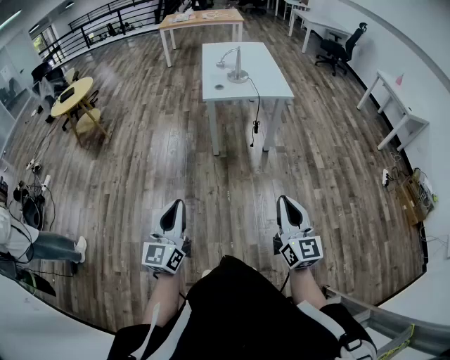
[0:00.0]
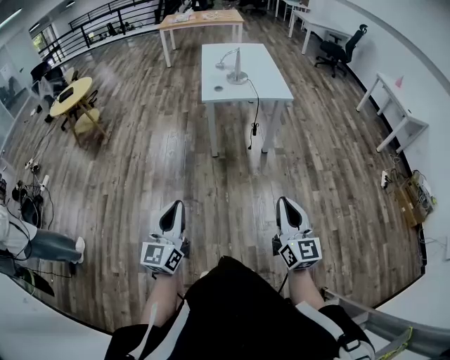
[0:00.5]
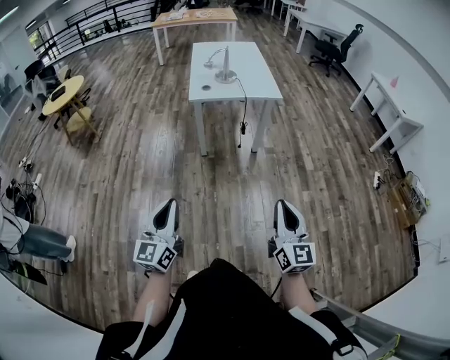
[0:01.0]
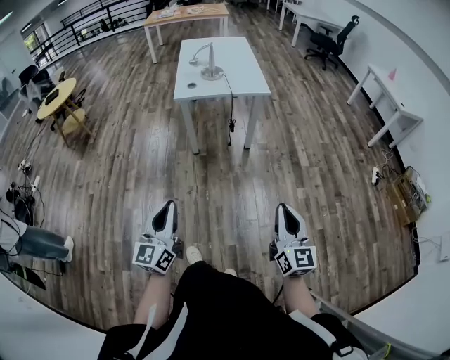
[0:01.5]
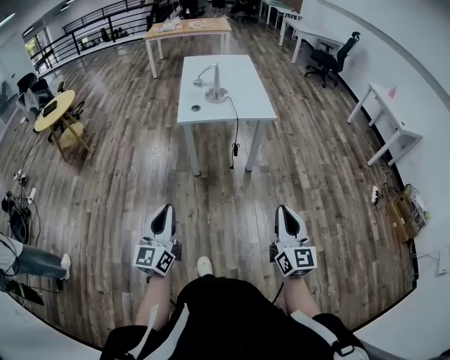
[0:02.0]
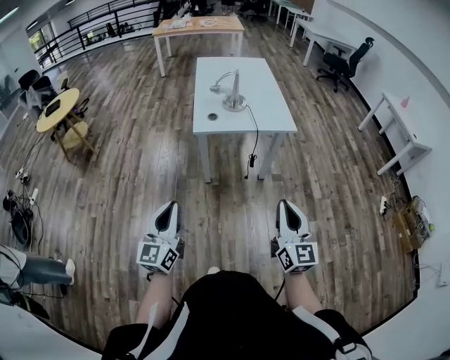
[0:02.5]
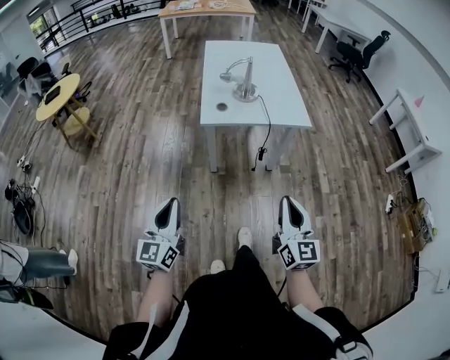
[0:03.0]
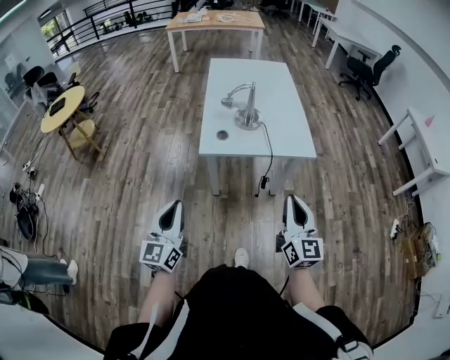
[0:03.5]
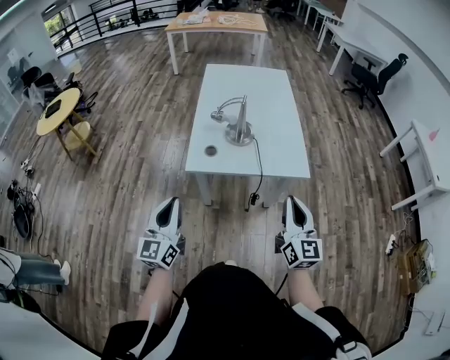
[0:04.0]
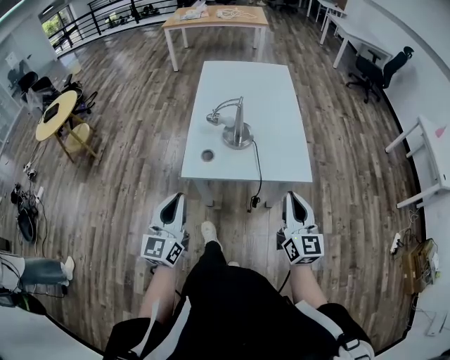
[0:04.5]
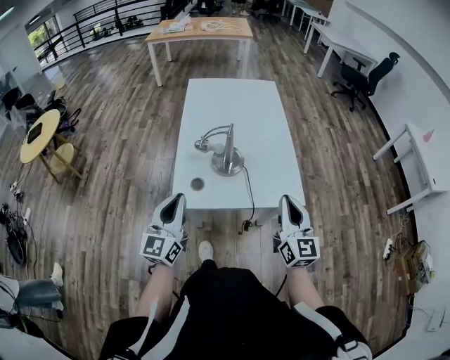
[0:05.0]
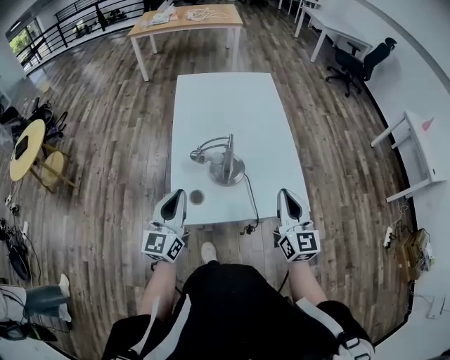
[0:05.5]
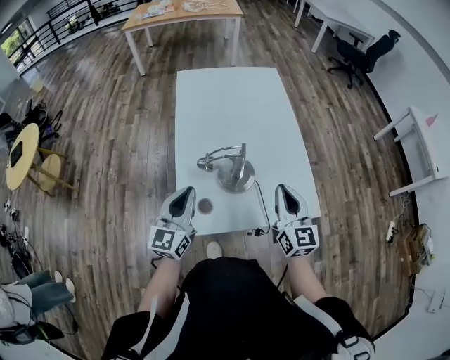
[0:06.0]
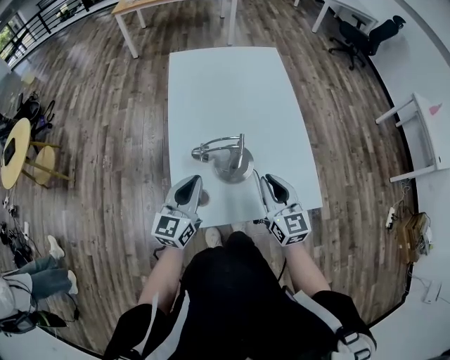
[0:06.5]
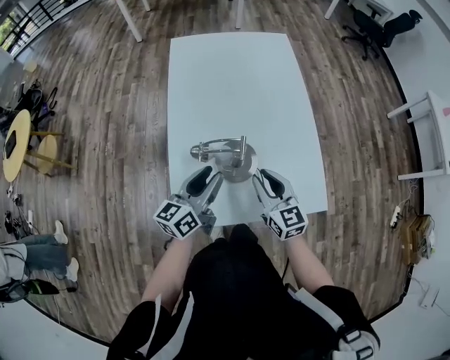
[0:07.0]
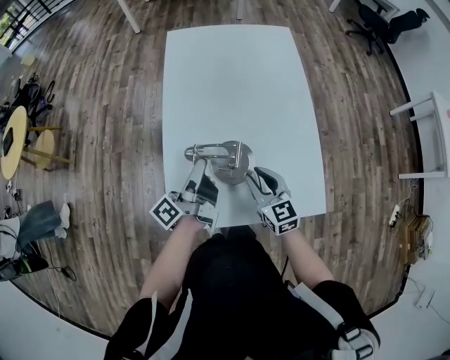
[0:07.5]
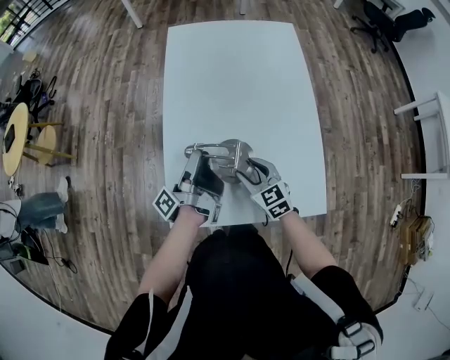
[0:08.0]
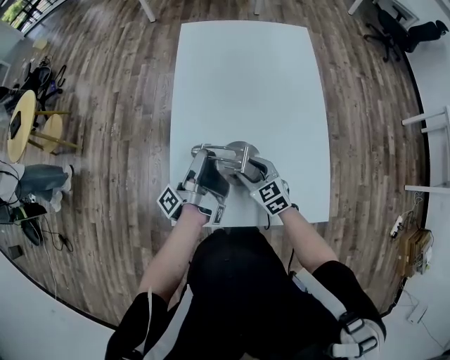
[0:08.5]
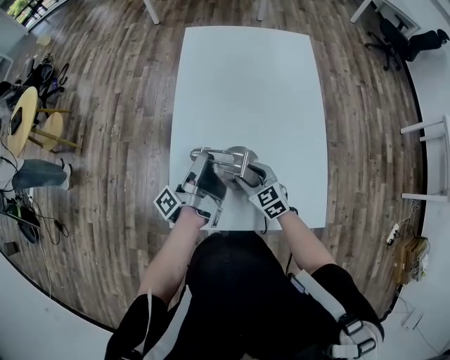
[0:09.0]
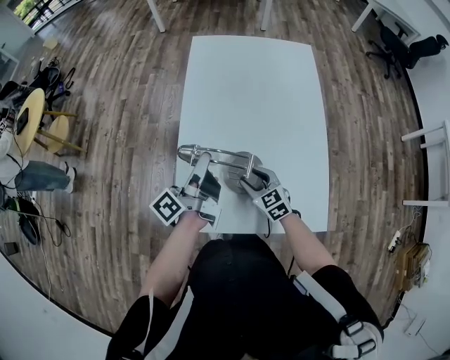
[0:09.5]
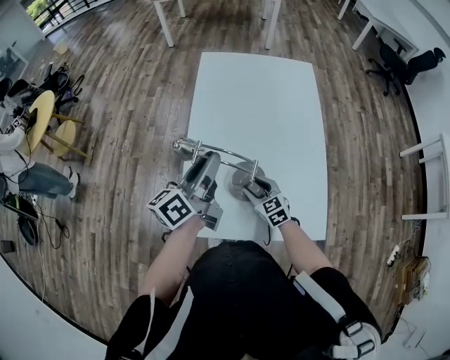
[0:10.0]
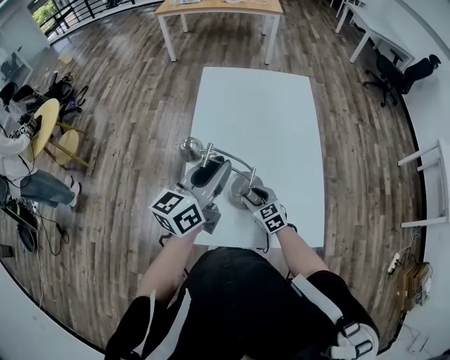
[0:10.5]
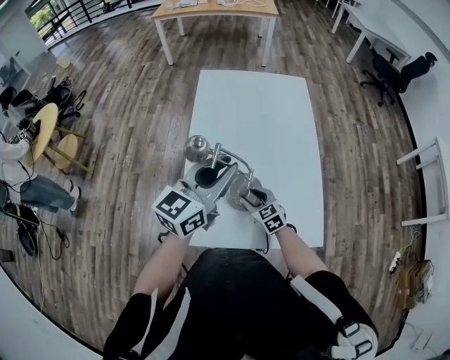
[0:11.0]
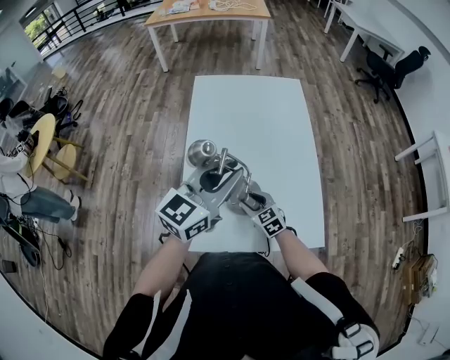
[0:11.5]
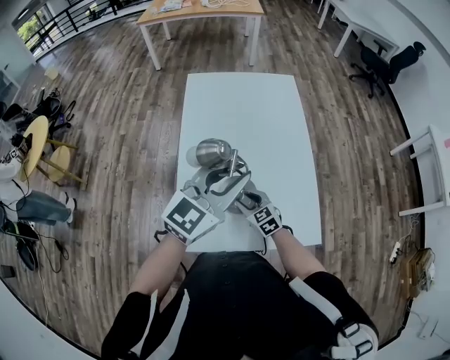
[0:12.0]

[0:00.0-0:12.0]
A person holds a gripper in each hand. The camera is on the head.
0:00.0 to 0:02.0: The two grippers go approximately 15 cm forward and to the right.
0:02.0 to 0:04.0: Both grippers move forward, about 35 cm.
0:04.0 to 0:06.0: The grippers both shift forward by approximately 30 cm.
0:06.0 to 0:08.0: The right gripper heads downward and to the left, covering about 20 cm, turns by roughly 40 degrees, and opens up, while the left gripper is displaced forward, downward and to the right by about 15 cm, twists approximately 100 degrees counterclockwise, seen from behind, and opens.
0:08.0 to 0:10.0: The left gripper shifts roughly 10 cm upward, and twists roughly 50 degrees clockwise, seen from behind.
0:10.0 to 0:12.0: The left gripper shifts approximately 15 cm to the right and upward, and rotates around the line of its fingers by about 50 degrees, clockwise from behind.

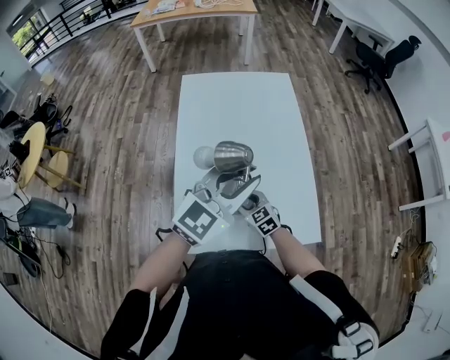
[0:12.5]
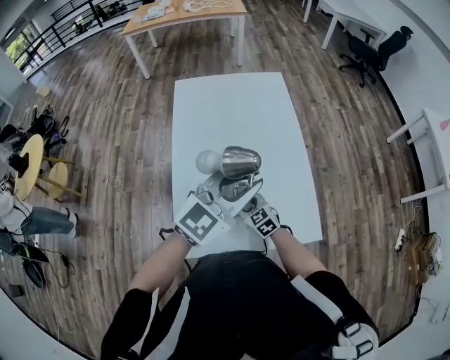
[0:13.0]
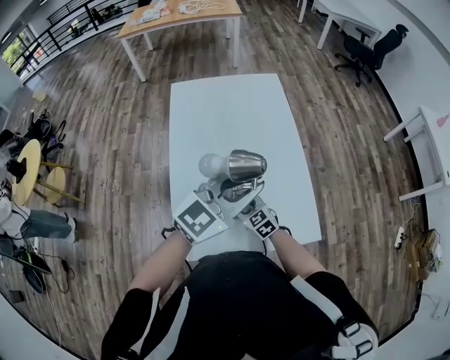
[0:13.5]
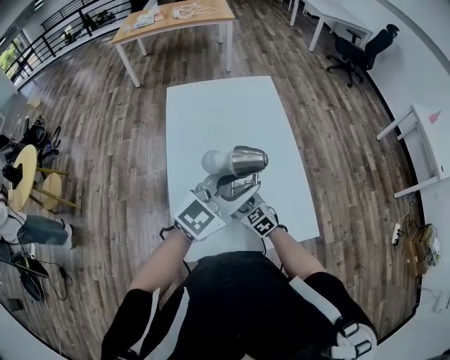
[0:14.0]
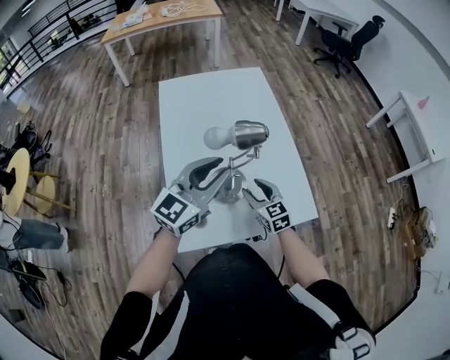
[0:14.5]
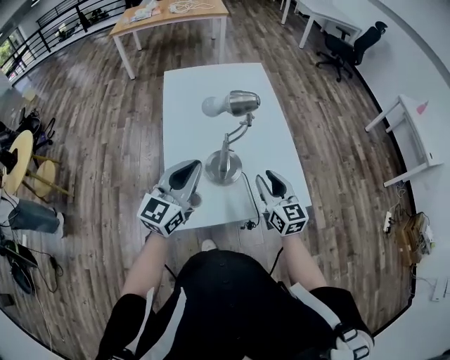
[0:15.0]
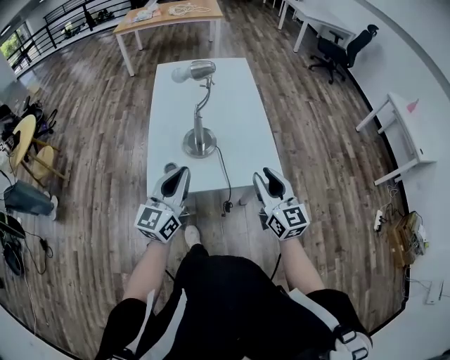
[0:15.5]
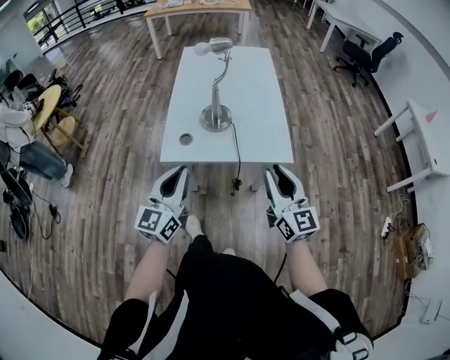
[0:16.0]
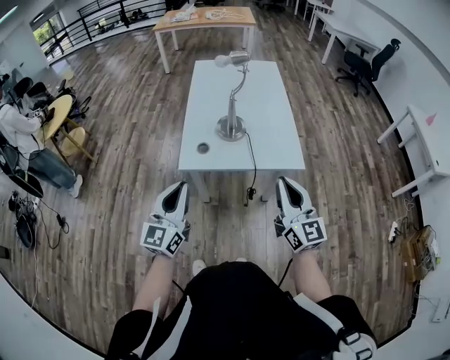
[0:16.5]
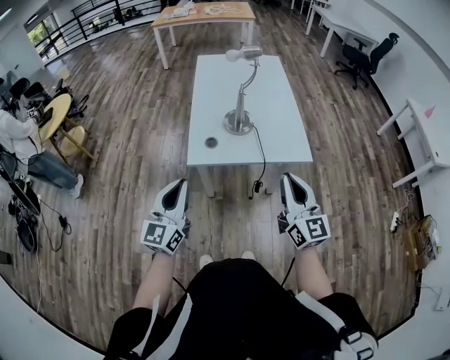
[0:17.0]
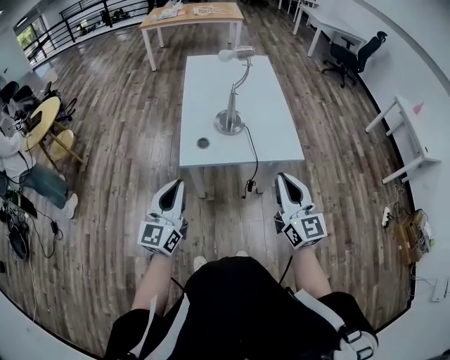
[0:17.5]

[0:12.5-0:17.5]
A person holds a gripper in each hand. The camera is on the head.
0:12.5 to 0:15.0: The right gripper is displaced upward and to the right by roughly 20 cm, and turns by roughly 40 degrees; the left gripper goes about 15 cm to the left, backward and downward, and turns by approximately 20 degrees.
0:15.0 to 0:17.5: The right gripper moves backward and upward, about 30 cm, and closes its fingers; the left gripper shifts approximately 30 cm backward, and rotates roughly 20 degrees.

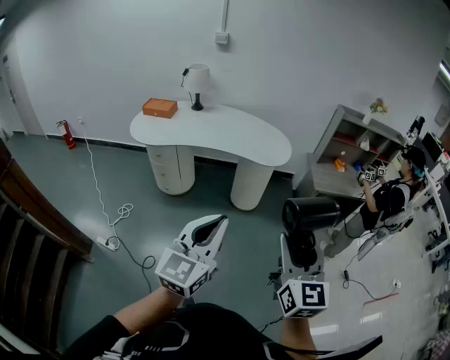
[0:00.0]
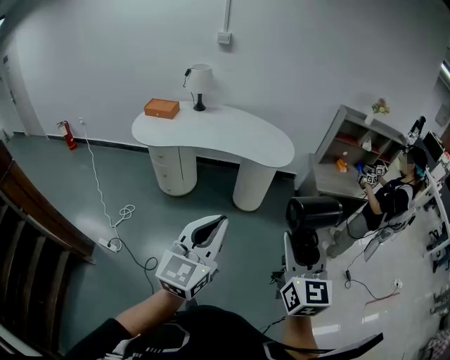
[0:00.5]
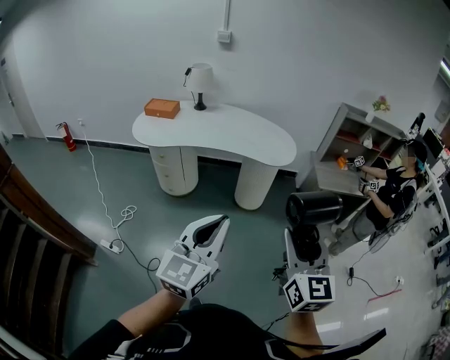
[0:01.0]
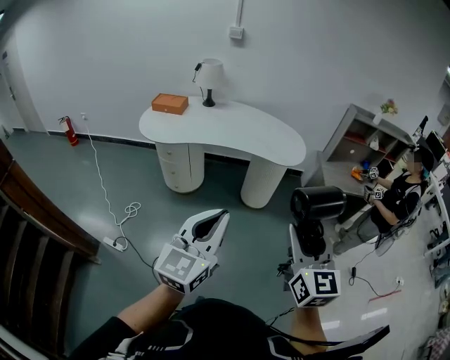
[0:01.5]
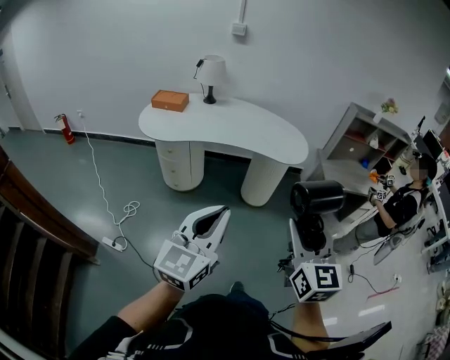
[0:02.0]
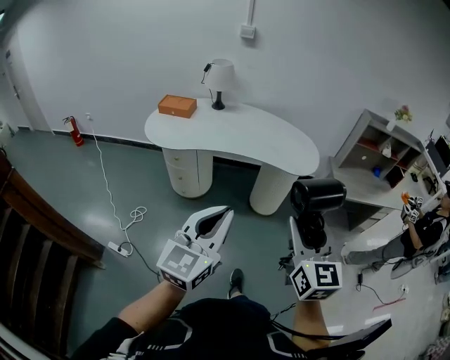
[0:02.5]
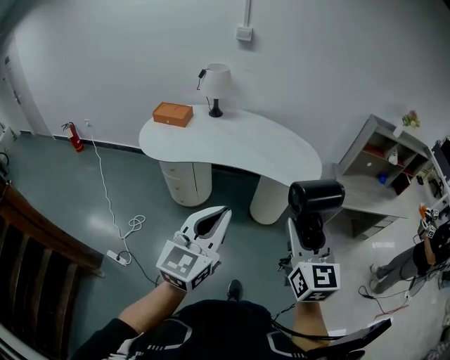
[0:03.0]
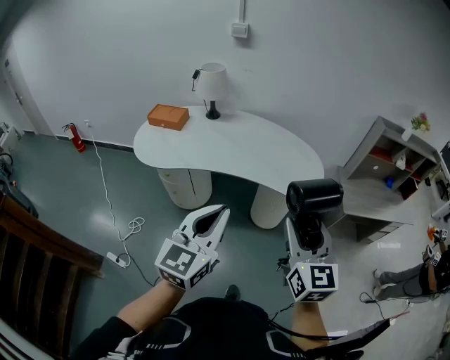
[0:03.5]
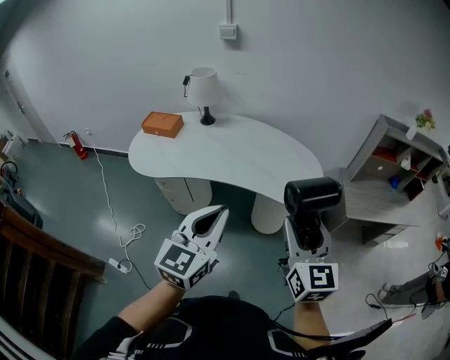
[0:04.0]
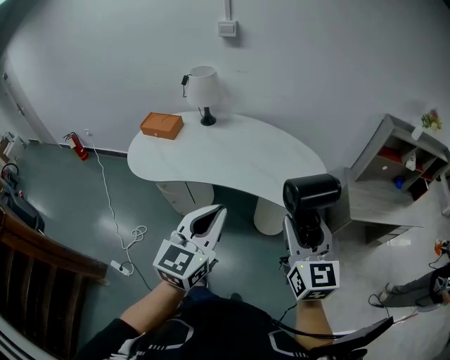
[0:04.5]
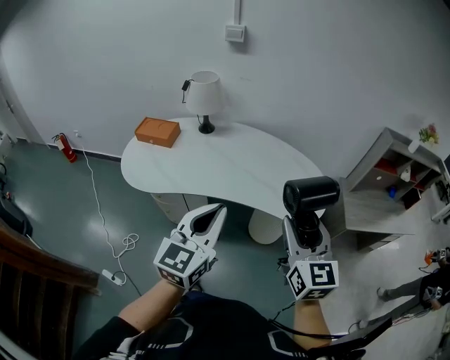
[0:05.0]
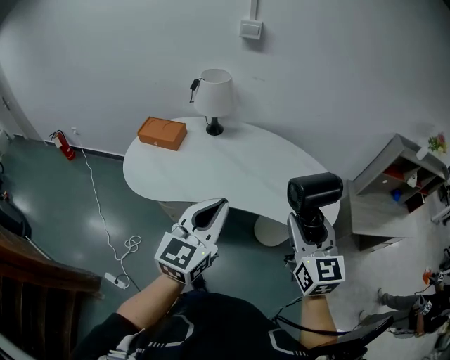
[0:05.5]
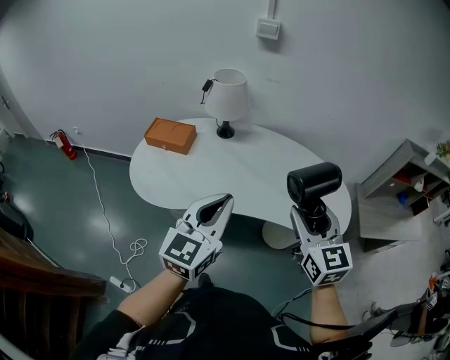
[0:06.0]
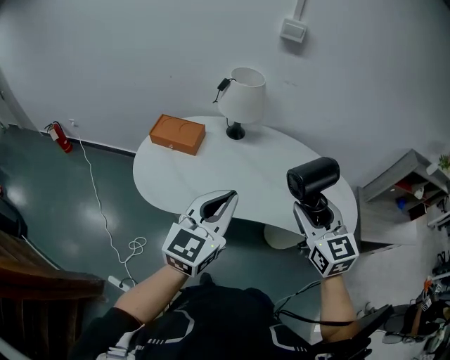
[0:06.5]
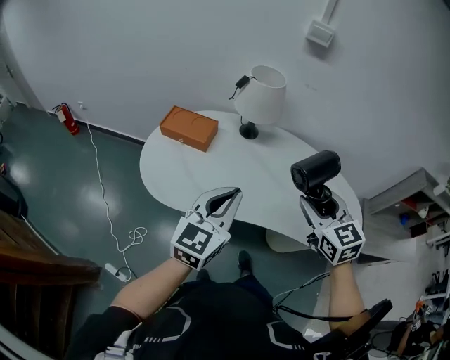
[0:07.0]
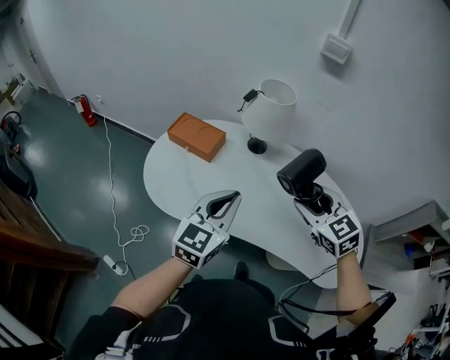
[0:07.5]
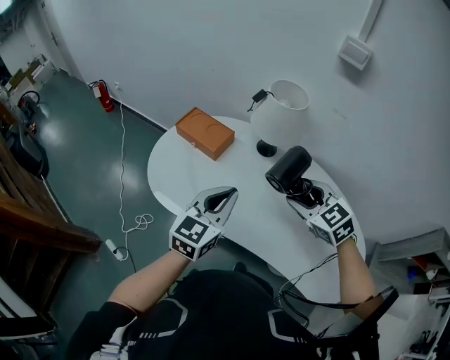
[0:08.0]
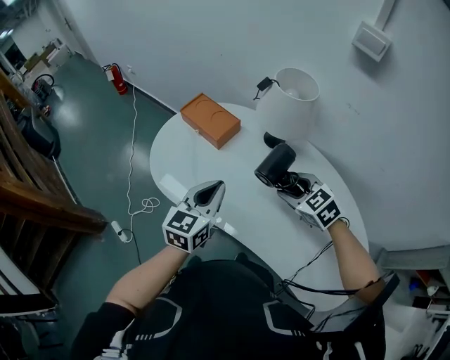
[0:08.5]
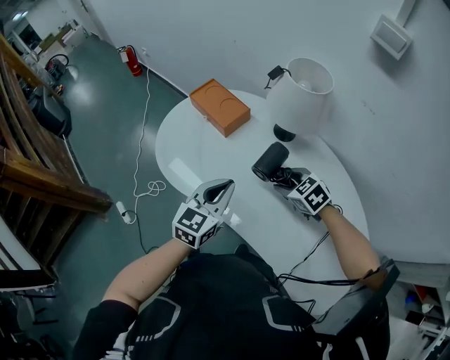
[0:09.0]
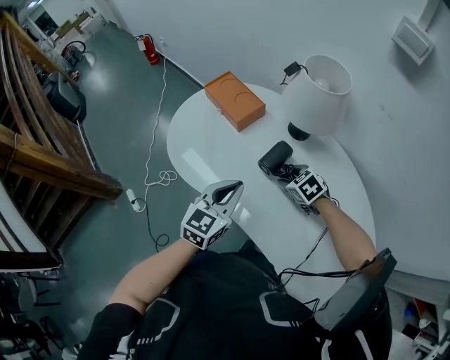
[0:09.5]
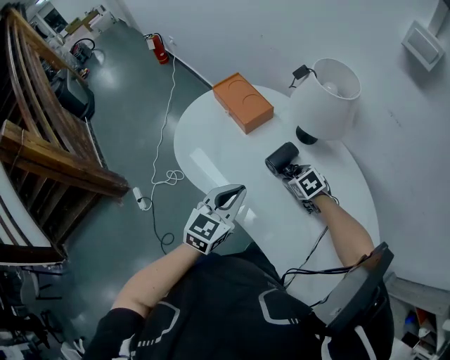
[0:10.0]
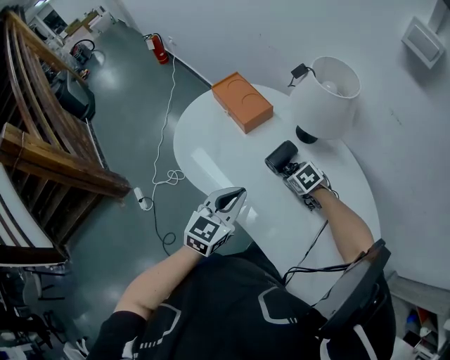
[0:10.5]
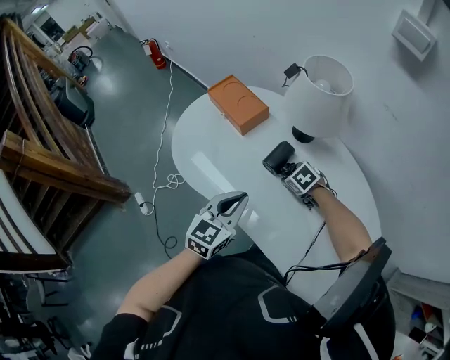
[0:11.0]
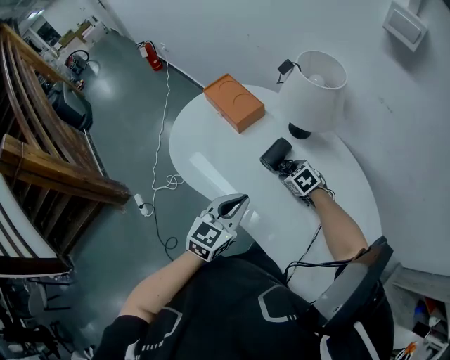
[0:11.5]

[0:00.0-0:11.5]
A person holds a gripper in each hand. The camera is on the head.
0:00.0 to 0:02.0: Both grippers move to the left, approximately 10 cm.
0:02.0 to 0:04.0: The two grippers go approximately 30 cm forward.
0:04.0 to 0:06.0: Both grippers move forward and to the left, approximately 30 cm.
0:06.0 to 0:07.5: The left gripper travels forward and to the left by approximately 15 cm. Meanwhile the right gripper moves forward, some 20 cm, and turns by some 40 degrees.
0:07.5 to 0:09.5: The left gripper shifts roughly 15 cm downward, and rotates approximately 20 degrees. Meanwhile the right gripper shifts about 30 cm downward, and changes its angle by some 40 degrees.
0:09.5 to 0:11.5: The right gripper is displaced downward by roughly 5 cm.
